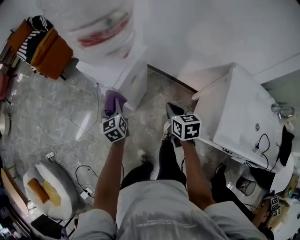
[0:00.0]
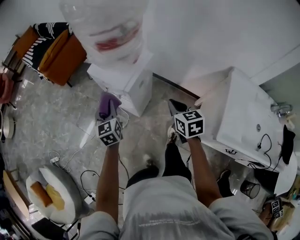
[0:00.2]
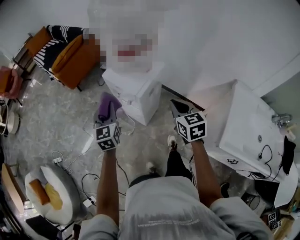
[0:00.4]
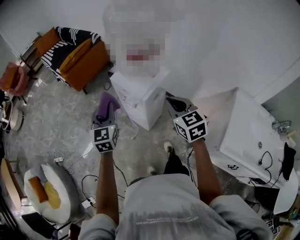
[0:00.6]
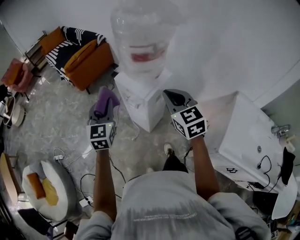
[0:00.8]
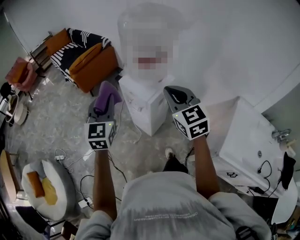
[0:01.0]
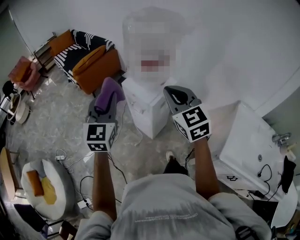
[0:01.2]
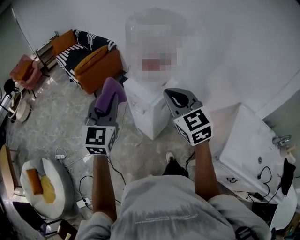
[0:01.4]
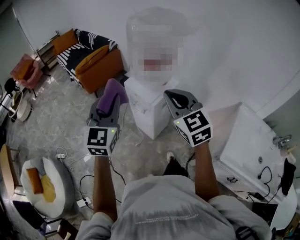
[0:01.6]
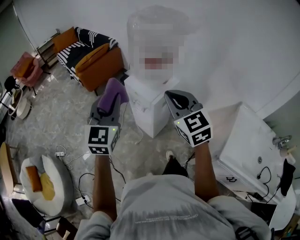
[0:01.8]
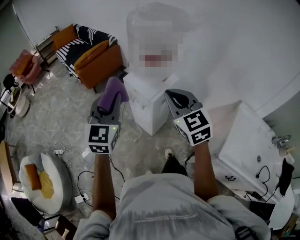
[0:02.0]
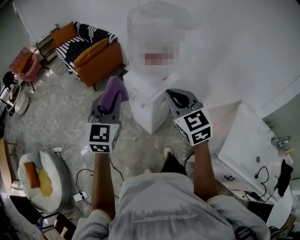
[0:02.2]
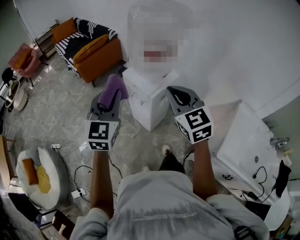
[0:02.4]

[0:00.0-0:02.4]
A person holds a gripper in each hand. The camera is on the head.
0:00.0 to 0:01.2: The right gripper is displaced upward and to the left by approximately 35 cm, and swivels approximately 50 degrees, while the left gripper heads upward, covering about 35 cm, and swivels roughly 40 degrees.
0:01.2 to 0:02.4: The grippers move only a little.

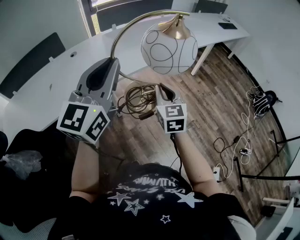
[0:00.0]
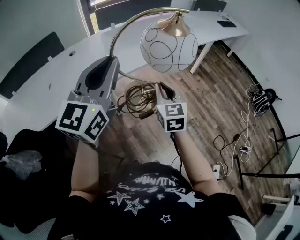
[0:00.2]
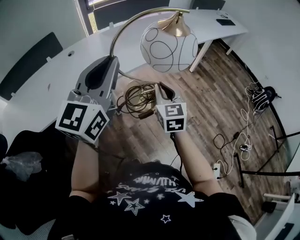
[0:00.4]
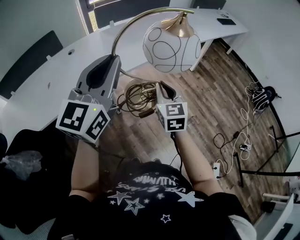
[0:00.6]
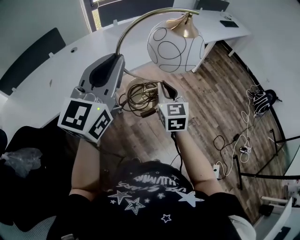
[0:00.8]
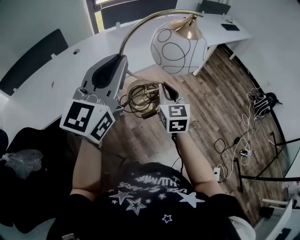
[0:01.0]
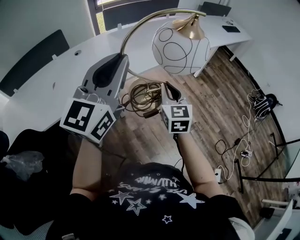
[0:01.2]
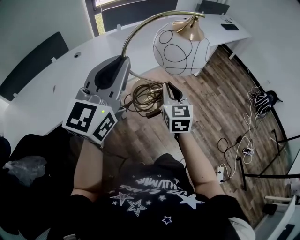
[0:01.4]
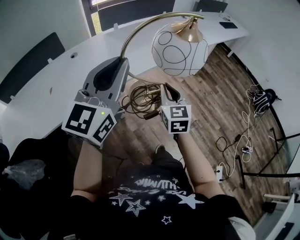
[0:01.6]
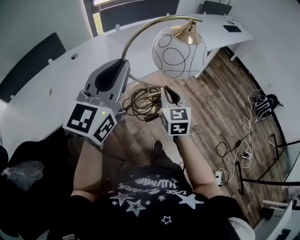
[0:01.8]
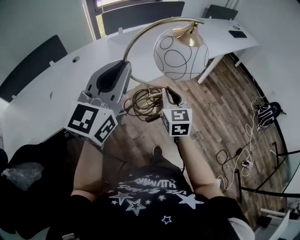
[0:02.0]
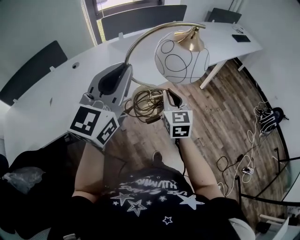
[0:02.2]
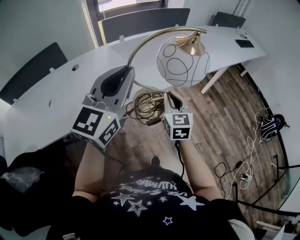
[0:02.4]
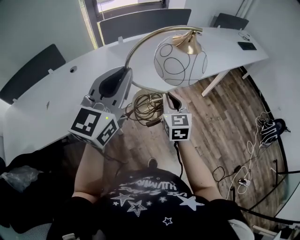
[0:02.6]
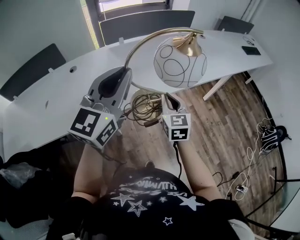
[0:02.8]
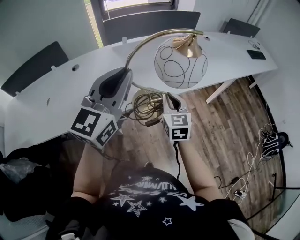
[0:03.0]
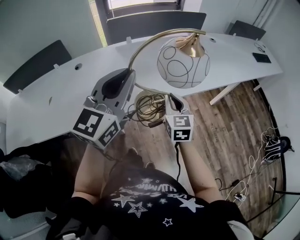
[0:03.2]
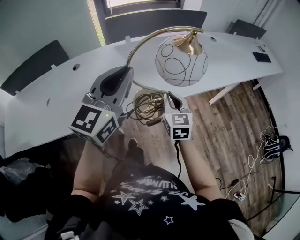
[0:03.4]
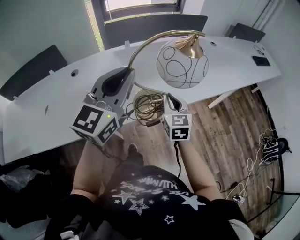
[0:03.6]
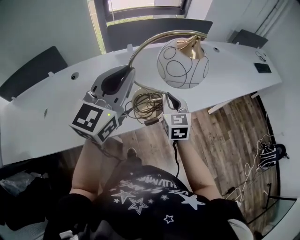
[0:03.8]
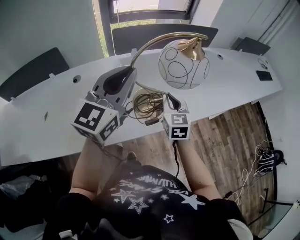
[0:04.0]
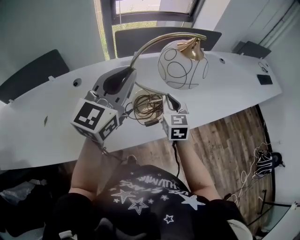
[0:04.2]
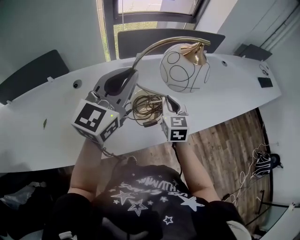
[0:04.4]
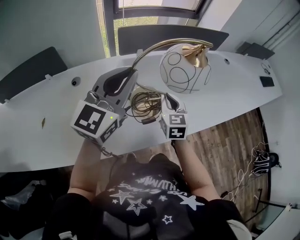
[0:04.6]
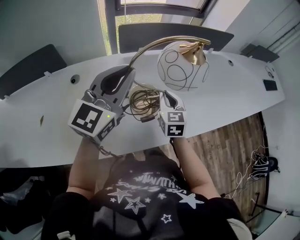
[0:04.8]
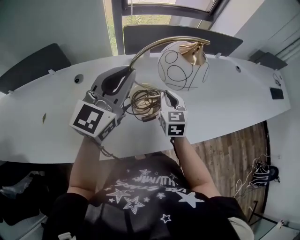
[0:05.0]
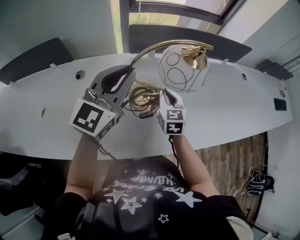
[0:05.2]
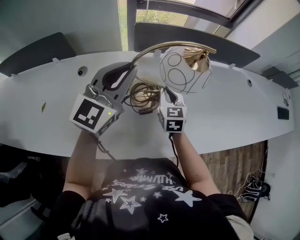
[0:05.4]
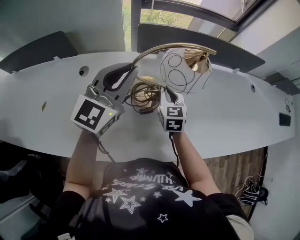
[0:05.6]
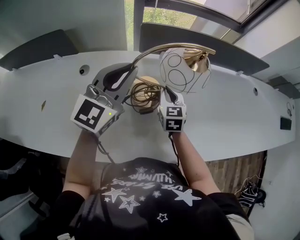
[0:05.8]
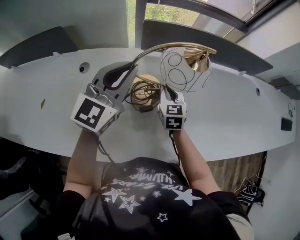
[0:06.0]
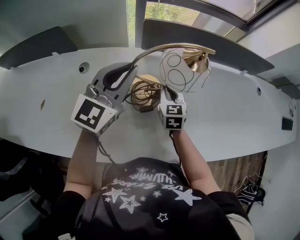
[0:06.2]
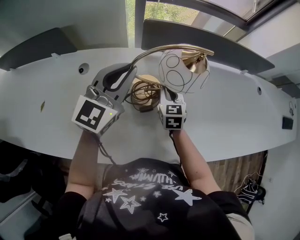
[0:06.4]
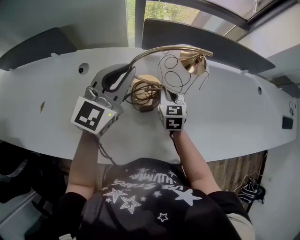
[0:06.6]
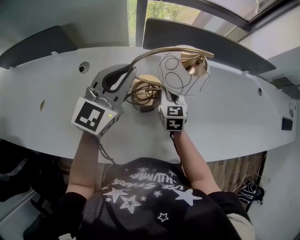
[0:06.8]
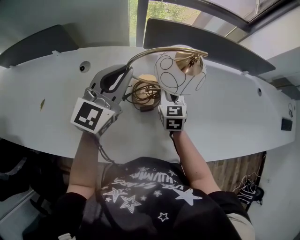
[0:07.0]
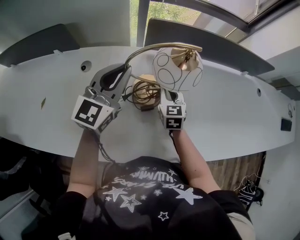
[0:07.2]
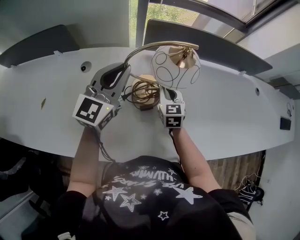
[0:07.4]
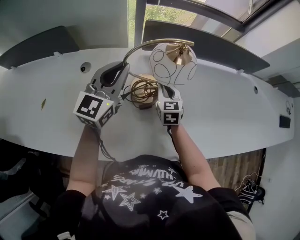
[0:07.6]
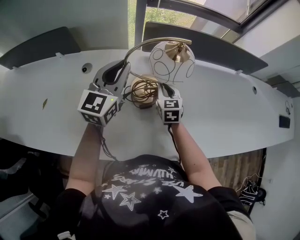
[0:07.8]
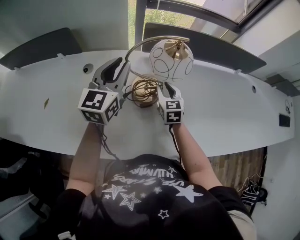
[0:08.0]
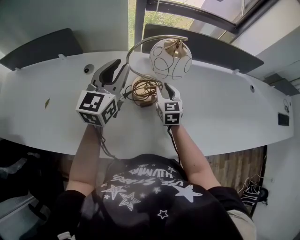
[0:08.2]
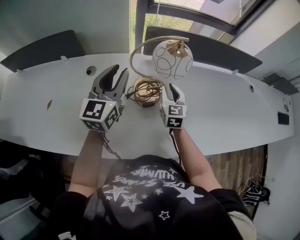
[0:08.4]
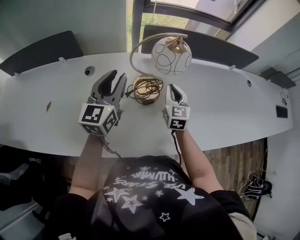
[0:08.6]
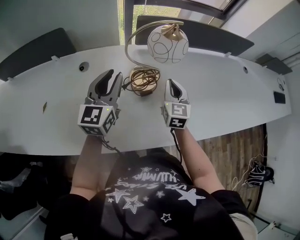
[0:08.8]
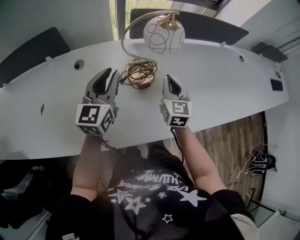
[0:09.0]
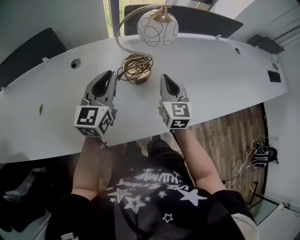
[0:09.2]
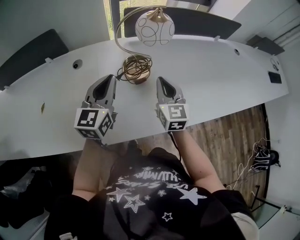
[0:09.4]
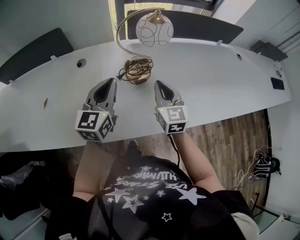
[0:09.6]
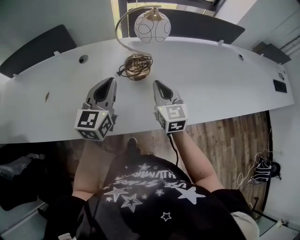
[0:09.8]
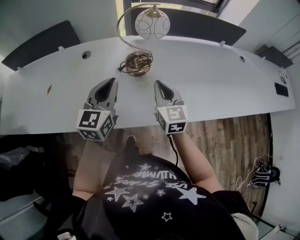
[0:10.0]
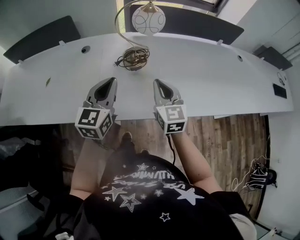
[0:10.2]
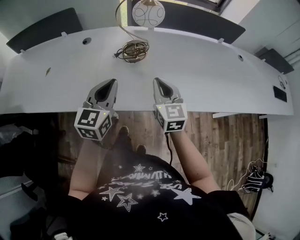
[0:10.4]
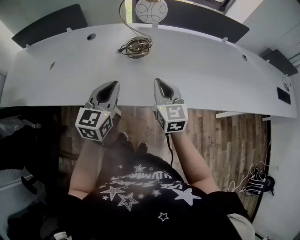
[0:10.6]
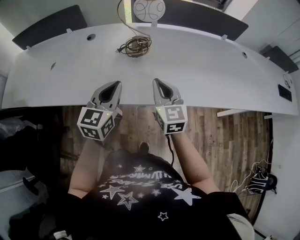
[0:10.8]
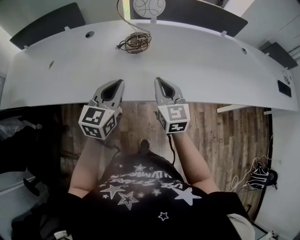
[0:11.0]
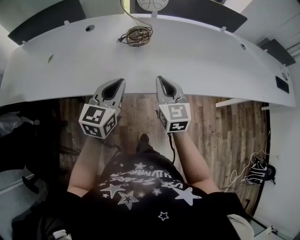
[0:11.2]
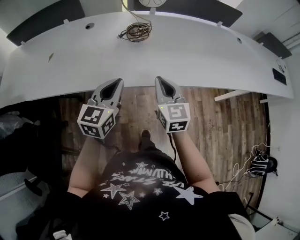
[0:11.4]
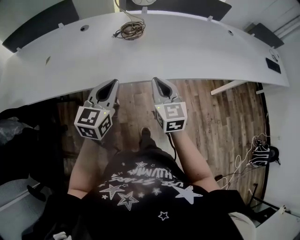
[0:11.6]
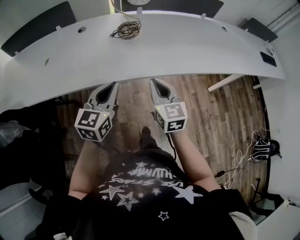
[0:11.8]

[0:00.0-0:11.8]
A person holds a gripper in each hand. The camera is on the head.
0:00.0 to 0:01.4: There are only small adjustments of the grippers.
0:01.4 to 0:03.0: Both grippers move forward, about 25 cm.
0:03.0 to 0:04.4: The grippers both shift forward and to the left by approximately 20 cm.
0:04.4 to 0:06.0: The left gripper is displaced forward, downward and to the left by some 25 cm. The right gripper heads forward, to the left and downward, covering about 25 cm.
0:06.0 to 0:07.4: There are only small adjustments of the grippers.
0:07.4 to 0:08.8: The right gripper is displaced backward and upward by some 10 cm; the left gripper moves backward, about 5 cm.
0:08.8 to 0:10.4: The left gripper shifts some 25 cm backward and to the right, and closes up; the right gripper travels backward by about 20 cm.
0:10.4 to 0:11.8: Both grippers travel together backward, roughly 15 cm.

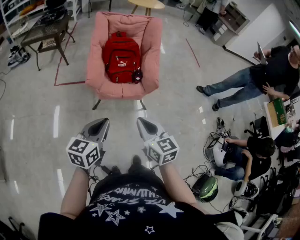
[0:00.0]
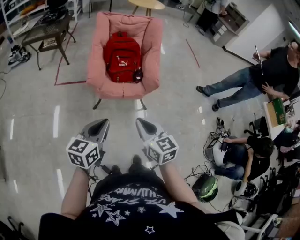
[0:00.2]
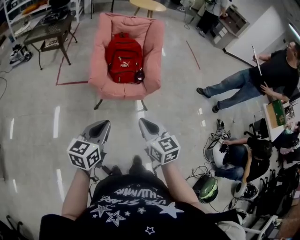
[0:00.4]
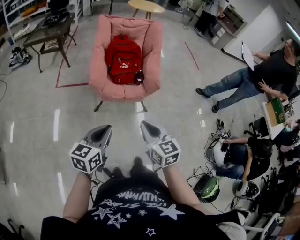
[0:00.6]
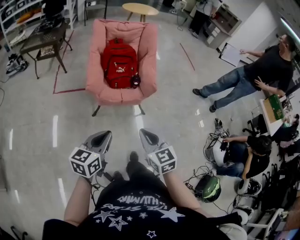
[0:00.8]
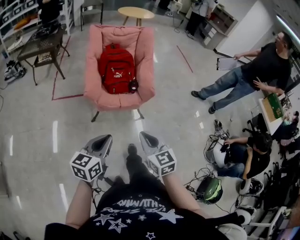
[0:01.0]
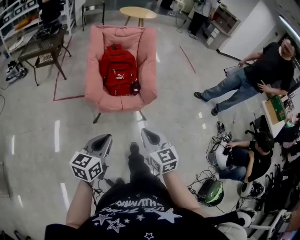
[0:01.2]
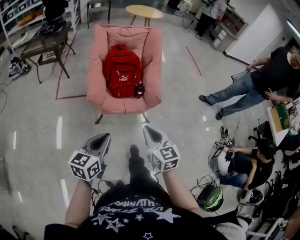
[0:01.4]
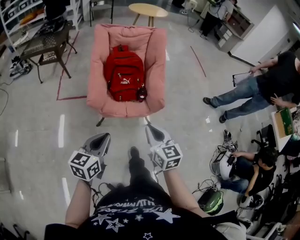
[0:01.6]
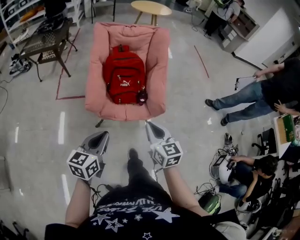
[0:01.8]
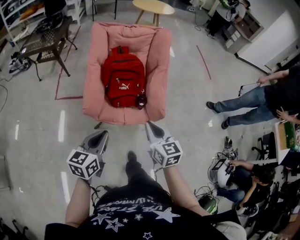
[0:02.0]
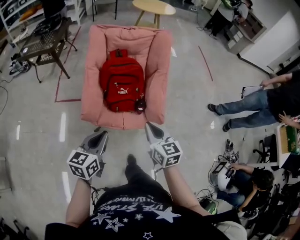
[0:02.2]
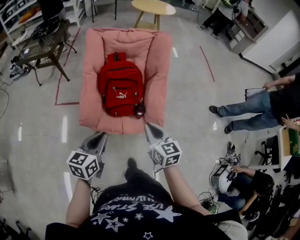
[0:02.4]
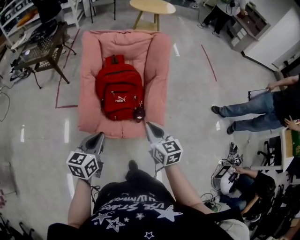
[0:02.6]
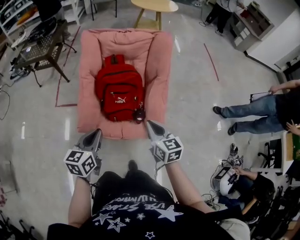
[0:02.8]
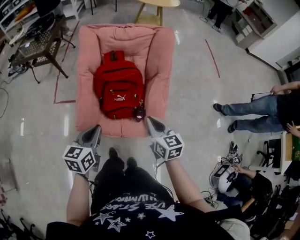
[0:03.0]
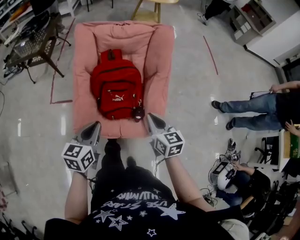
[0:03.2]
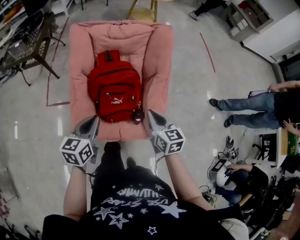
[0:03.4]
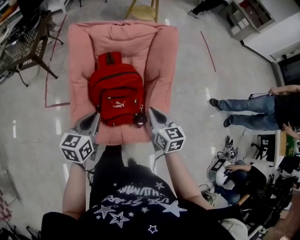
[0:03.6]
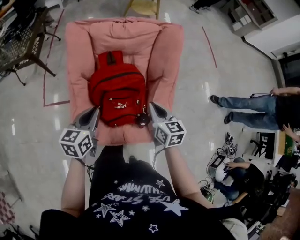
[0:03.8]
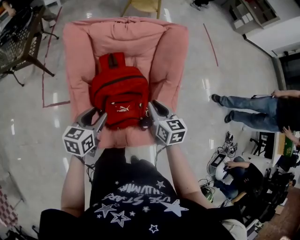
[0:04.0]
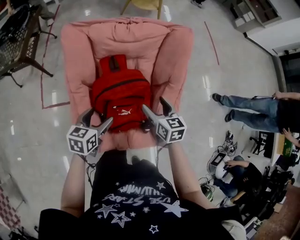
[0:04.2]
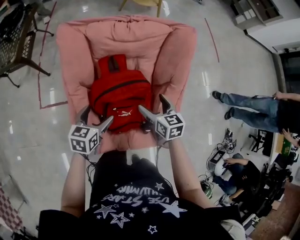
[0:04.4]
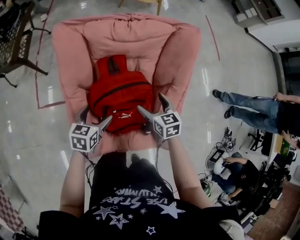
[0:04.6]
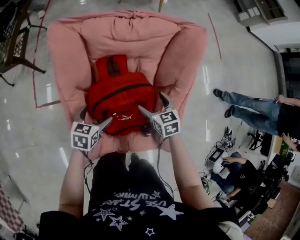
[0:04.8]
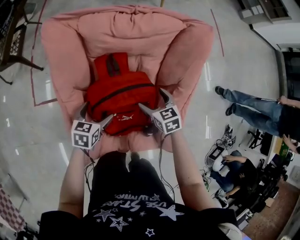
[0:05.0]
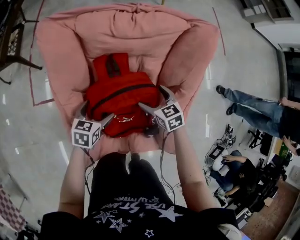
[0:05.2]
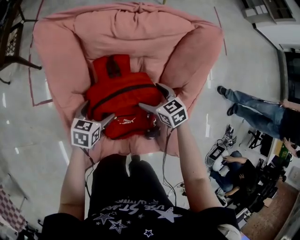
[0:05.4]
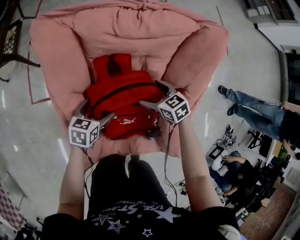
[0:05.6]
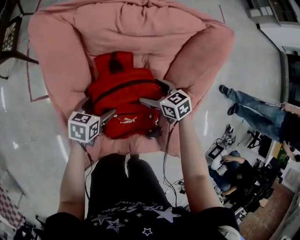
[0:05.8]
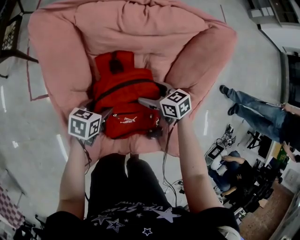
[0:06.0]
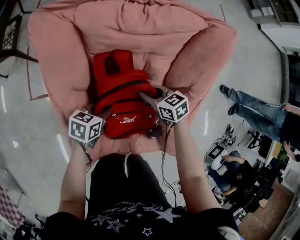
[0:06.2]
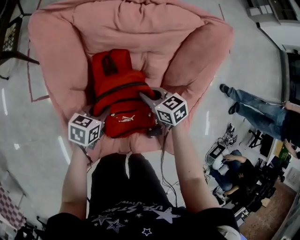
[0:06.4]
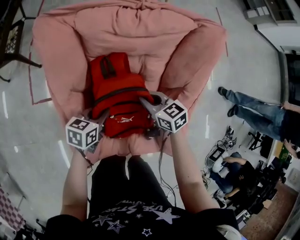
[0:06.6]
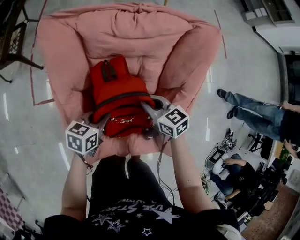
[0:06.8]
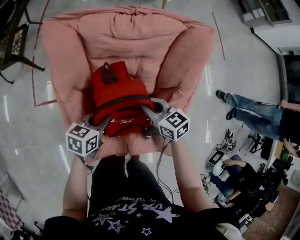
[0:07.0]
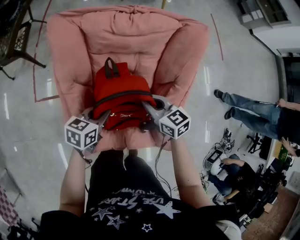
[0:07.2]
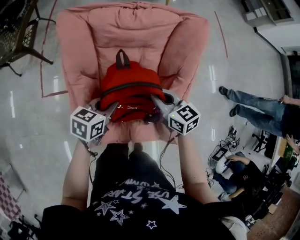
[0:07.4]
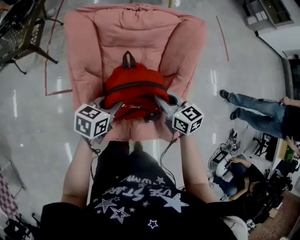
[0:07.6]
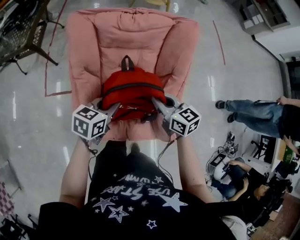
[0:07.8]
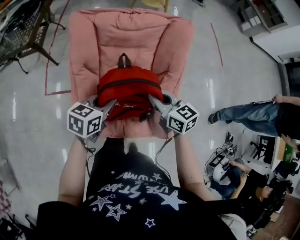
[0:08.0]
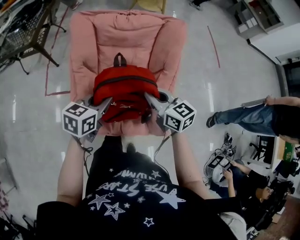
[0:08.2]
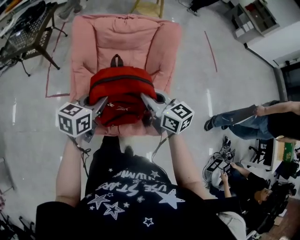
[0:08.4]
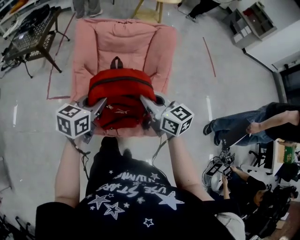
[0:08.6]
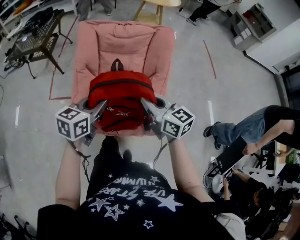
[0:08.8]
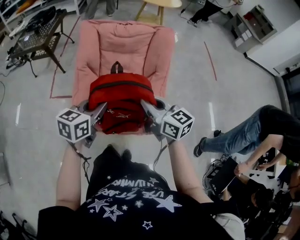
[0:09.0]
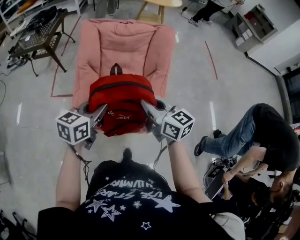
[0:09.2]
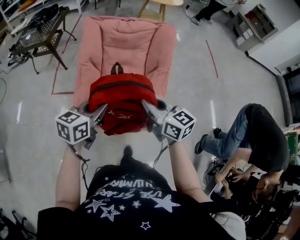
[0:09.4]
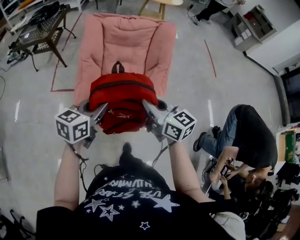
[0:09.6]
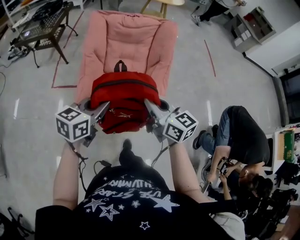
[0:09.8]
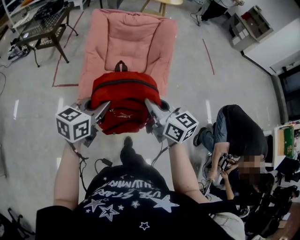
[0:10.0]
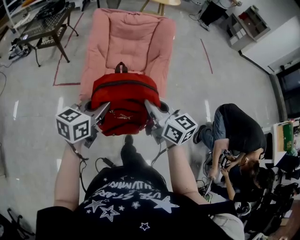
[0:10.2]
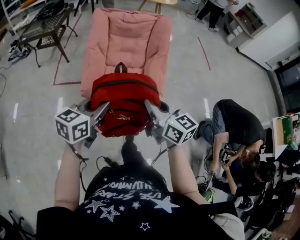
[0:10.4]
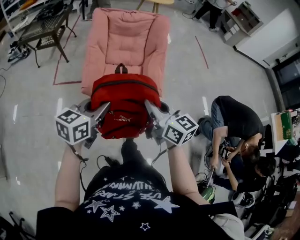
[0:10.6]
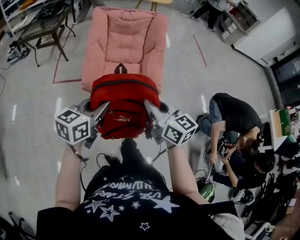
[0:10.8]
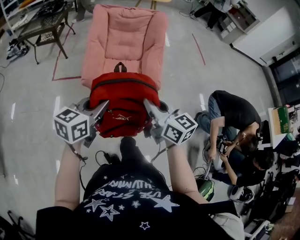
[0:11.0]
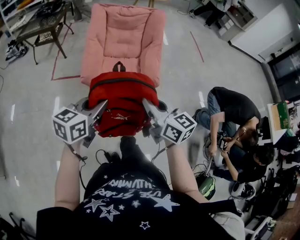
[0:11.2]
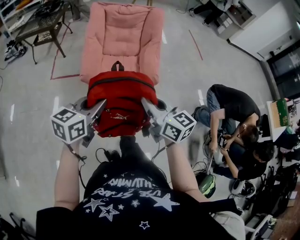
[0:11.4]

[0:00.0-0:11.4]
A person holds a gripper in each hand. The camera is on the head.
0:00.0 to 0:01.4: The right gripper is displaced forward by some 5 cm.
0:01.4 to 0:02.8: The two grippers go roughly 35 cm forward.
0:02.8 to 0:04.2: The right gripper moves forward, approximately 30 cm, and opens, while the left gripper goes roughly 30 cm forward and downward, and opens.
0:04.2 to 0:05.6: Both grippers move downward and forward, approximately 20 cm. The right gripper swivels roughly 30 degrees.
0:05.6 to 0:07.2: The two grippers go about 15 cm upward and backward. The left gripper closes up; the right gripper closes its fingers.
0:07.2 to 0:08.6: The grippers both shift upward and backward by about 30 cm.
0:08.6 to 0:10.0: Both grippers travel together backward, some 20 cm.
0:10.0 to 0:11.4: The grippers both shift backward by about 25 cm.
